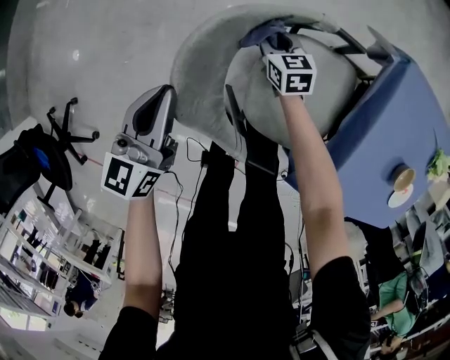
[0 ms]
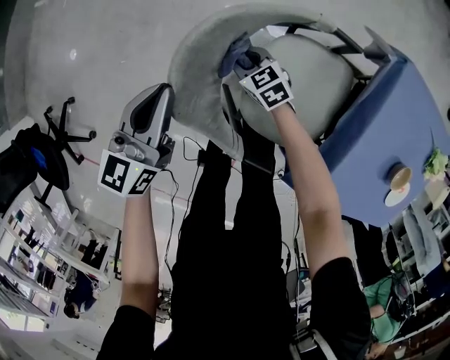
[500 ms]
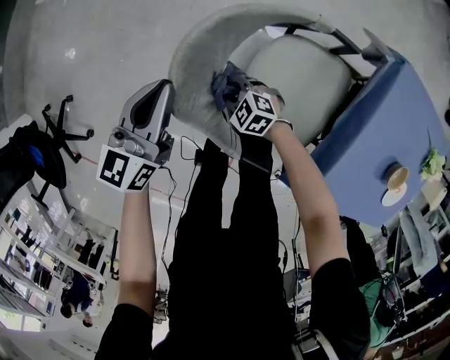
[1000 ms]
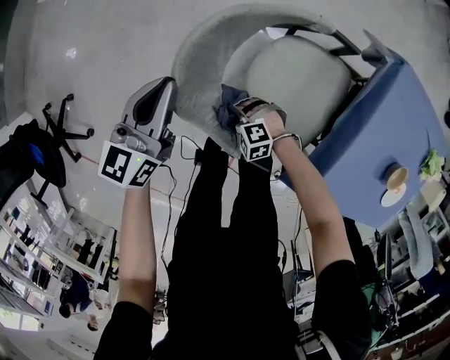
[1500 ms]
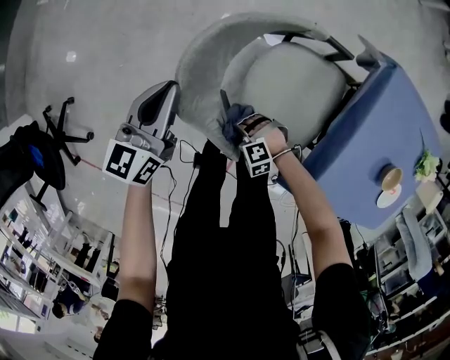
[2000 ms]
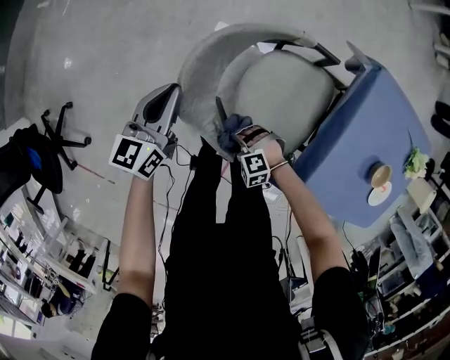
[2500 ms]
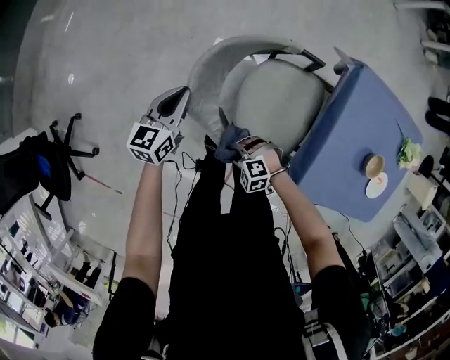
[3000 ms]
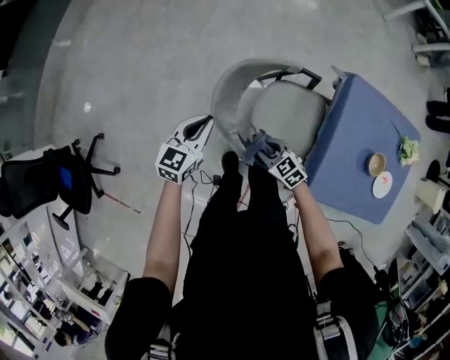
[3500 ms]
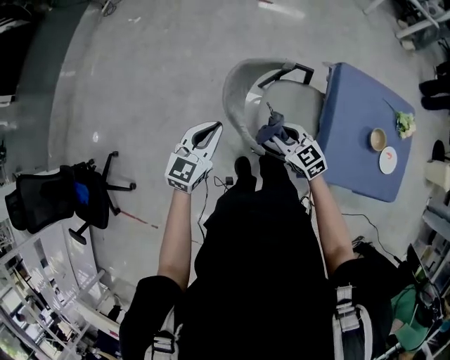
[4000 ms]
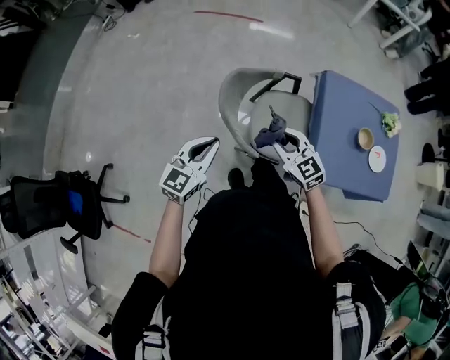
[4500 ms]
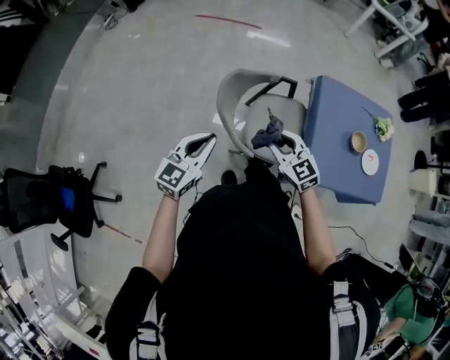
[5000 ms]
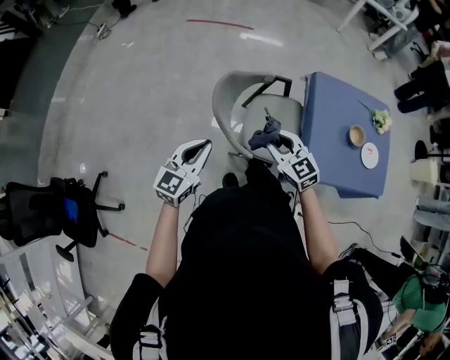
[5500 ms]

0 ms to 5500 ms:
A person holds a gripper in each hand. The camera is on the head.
0 ms to 2000 ms: The right gripper ends up roughly 35 cm from where it was, and rolls counterclockwise, seen from behind, by roughly 80 degrees.
2000 ms to 3500 ms: The right gripper moves upward, roughly 20 cm, and twists about 50 degrees clockwise, seen from behind; the left gripper moves upward, some 10 cm, and turns by roughly 20 degrees.
3500 ms to 5500 ms: The right gripper travels upward by some 25 cm, and changes its angle by some 30 degrees, while the left gripper goes approximately 25 cm backward and upward.

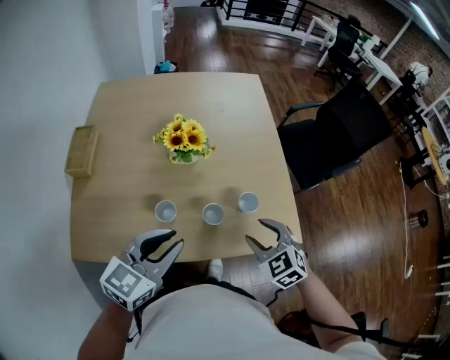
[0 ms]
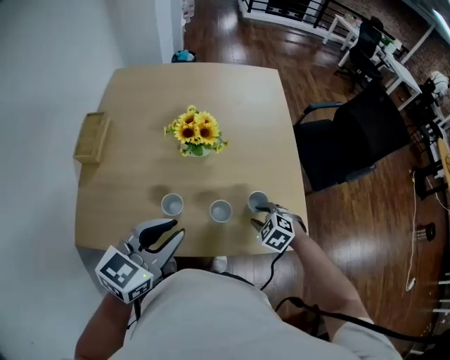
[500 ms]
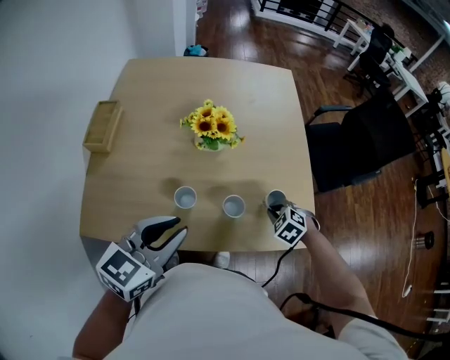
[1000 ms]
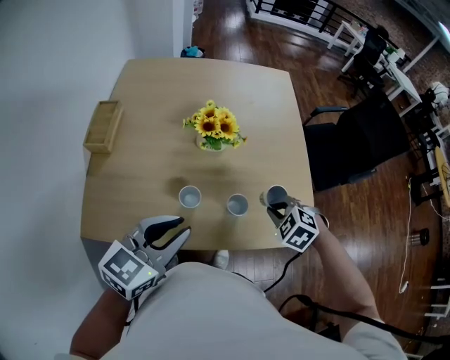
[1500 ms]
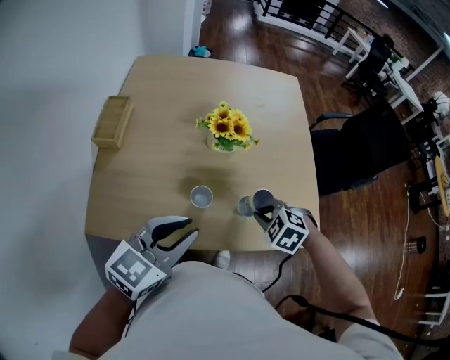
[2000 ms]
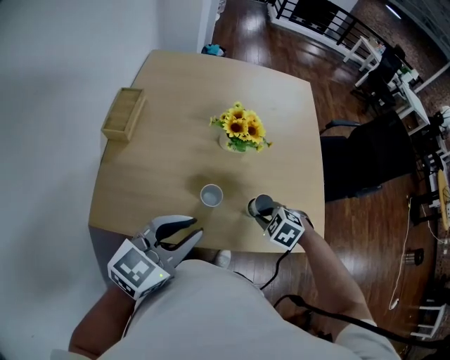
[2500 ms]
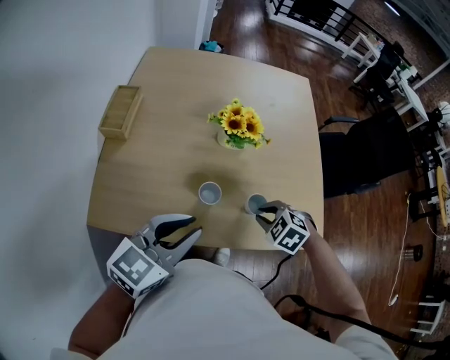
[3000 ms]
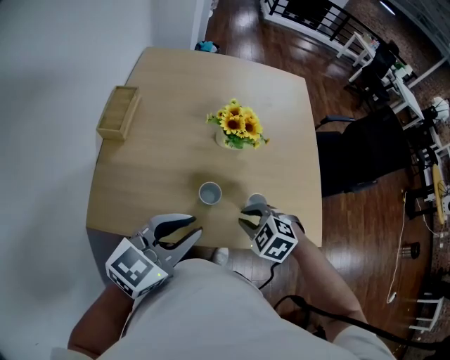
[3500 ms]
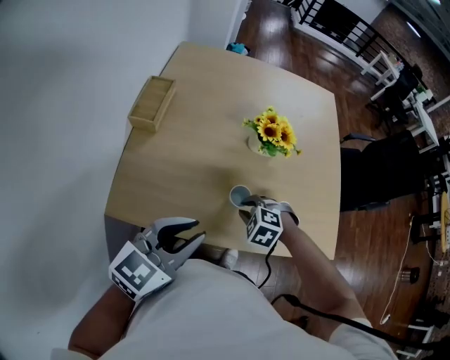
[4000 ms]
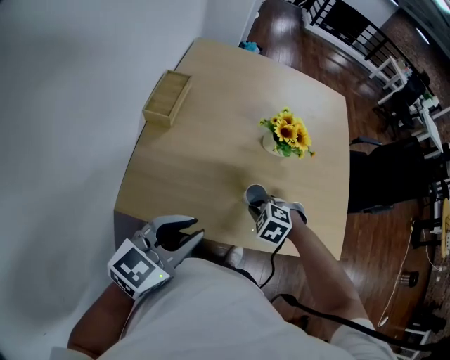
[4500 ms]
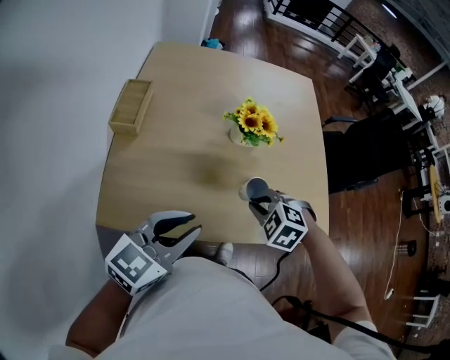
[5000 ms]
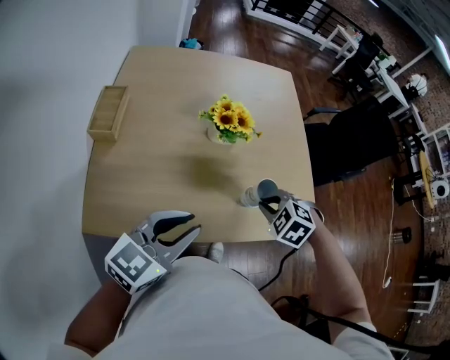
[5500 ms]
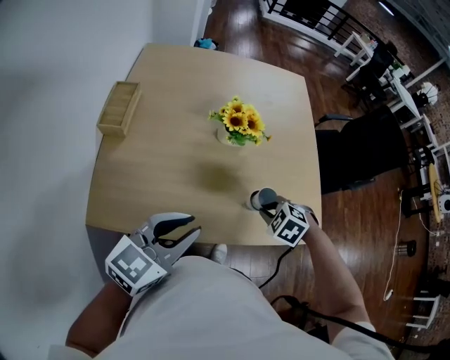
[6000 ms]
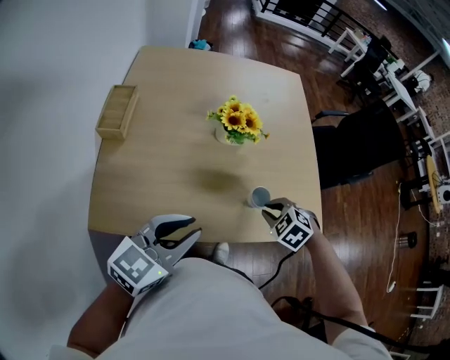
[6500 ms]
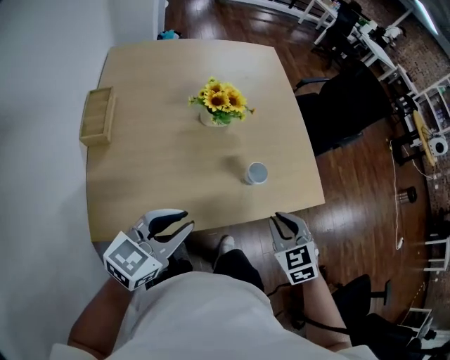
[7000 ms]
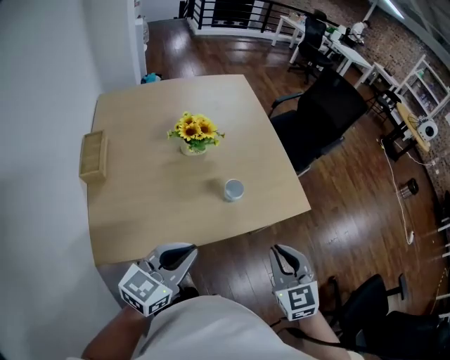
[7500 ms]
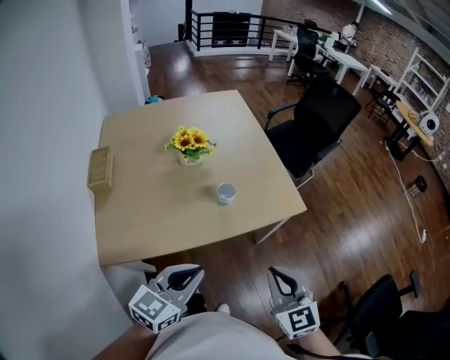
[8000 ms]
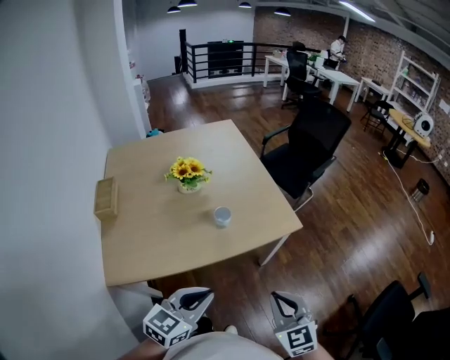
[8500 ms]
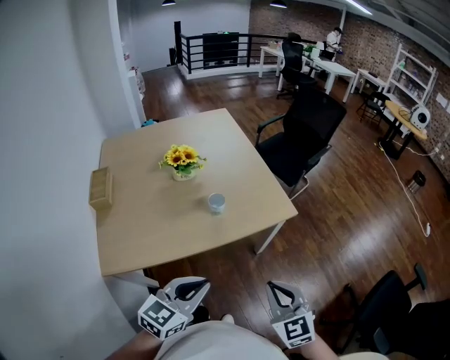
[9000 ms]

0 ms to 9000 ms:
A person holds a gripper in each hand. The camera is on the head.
0 ms to 2000 ms: Both grippers move to the left, approximately 10 cm. The right gripper travels downward and back again, roughly 15 cm each way, rotates roughly 30 degrees, and closes its fingers.
2000 ms to 4500 ms: The two grippers go about 15 cm to the left.
4500 ms to 7000 ms: The right gripper moves up and down over roughly 10 cm, changing direction 2 times, and turns by some 60 degrees. The left gripper ends up some 10 cm from where it was, and turns by roughly 20 degrees.
7000 ms to 9000 ms: The right gripper moves backward and to the right, roughly 25 cm, and rotates some 20 degrees. The left gripper travels to the right and backward by roughly 25 cm.

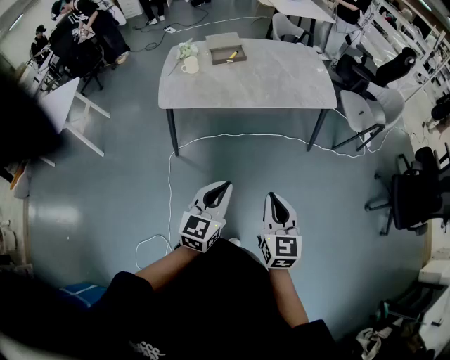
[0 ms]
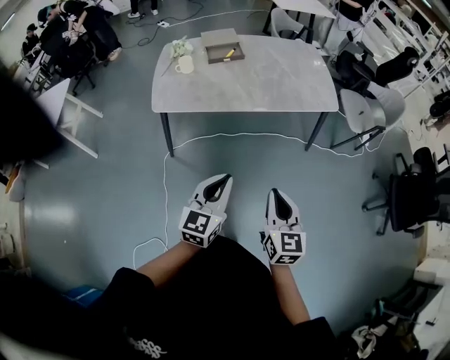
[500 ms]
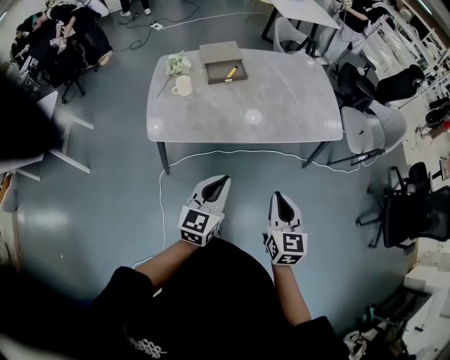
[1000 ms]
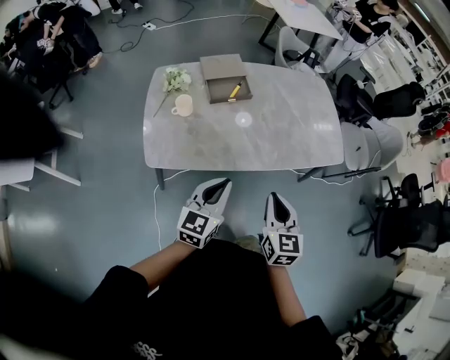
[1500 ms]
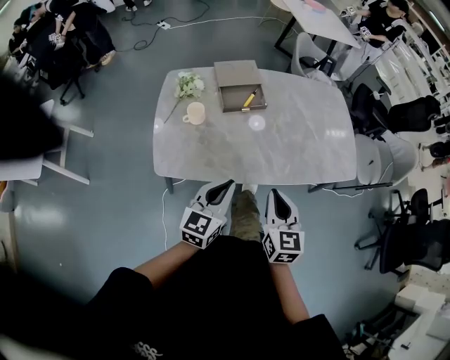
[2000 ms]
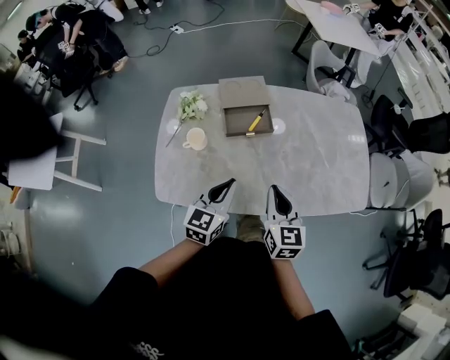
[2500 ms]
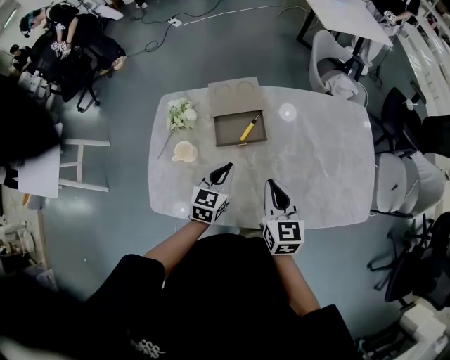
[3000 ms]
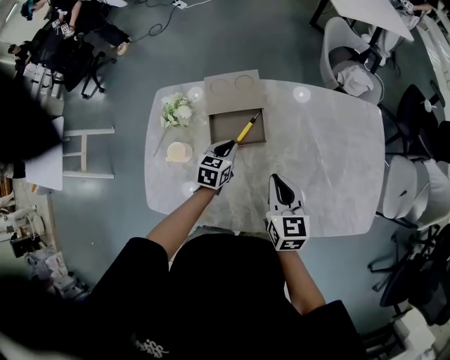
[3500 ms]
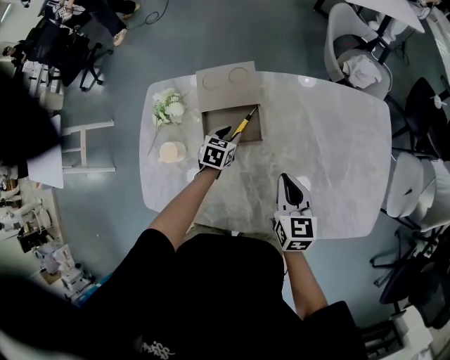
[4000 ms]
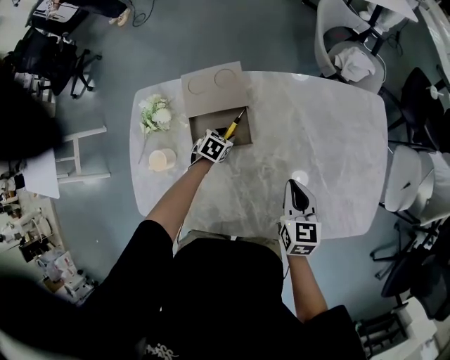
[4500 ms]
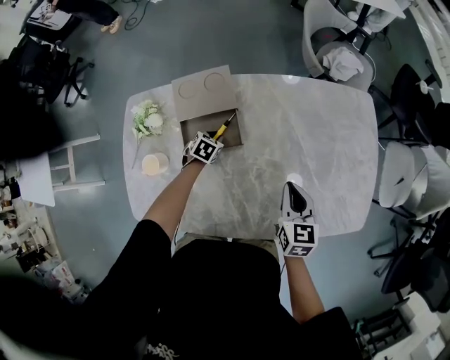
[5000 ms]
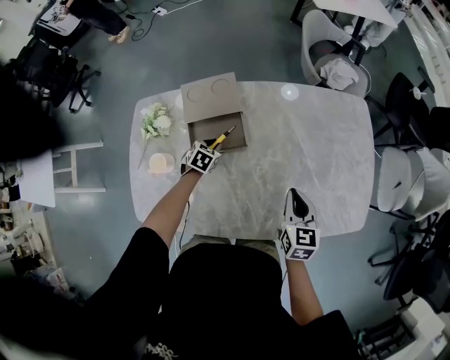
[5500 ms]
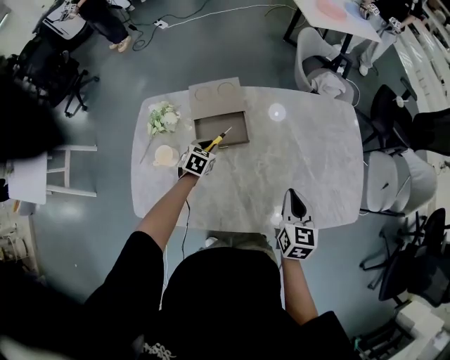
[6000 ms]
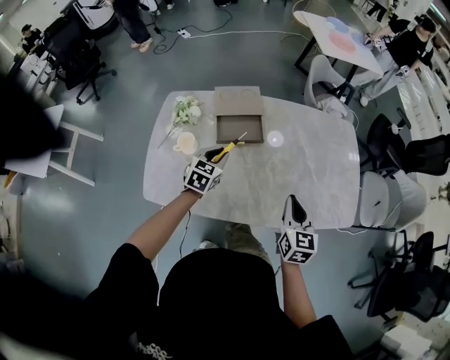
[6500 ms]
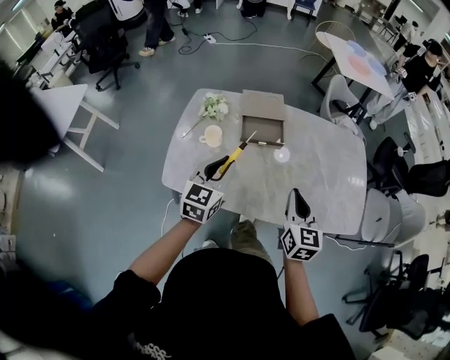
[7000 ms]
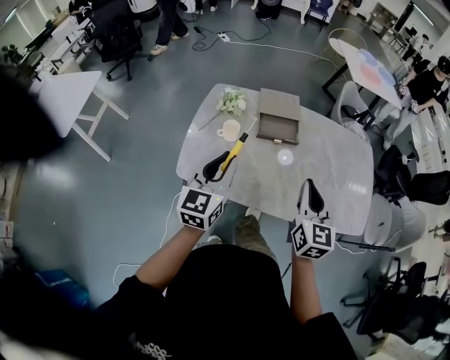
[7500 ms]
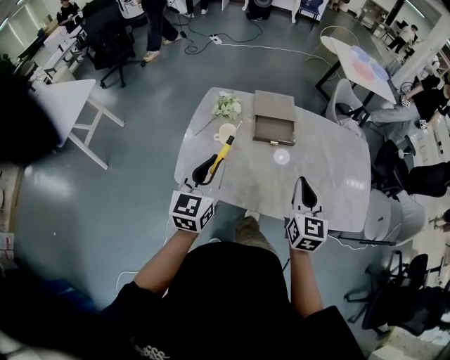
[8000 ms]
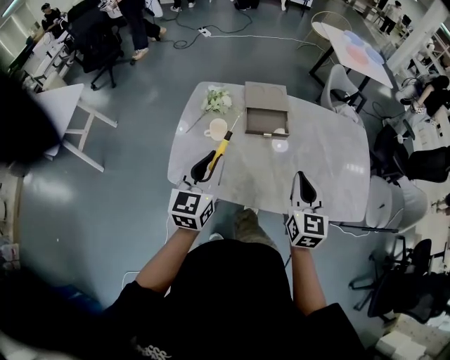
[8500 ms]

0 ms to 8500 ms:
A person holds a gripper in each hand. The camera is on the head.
0 ms to 2000 ms: The two grippers travel together, forward and to the left, roughly 50 cm.
2000 ms to 4000 ms: Both grippers are carried forward, roughly 50 cm. The left gripper travels downward by roughly 25 cm, tilts its fingers about 40 degrees downward, and opens up.
4000 ms to 6500 ms: The grippers both shift backward and upward by about 25 cm. The left gripper turns by approximately 20 degrees.
6500 ms to 8500 ms: The left gripper is displaced upward, backward and to the left by some 30 cm, and rotates about 30 degrees. The right gripper goes some 15 cm to the left and upward.

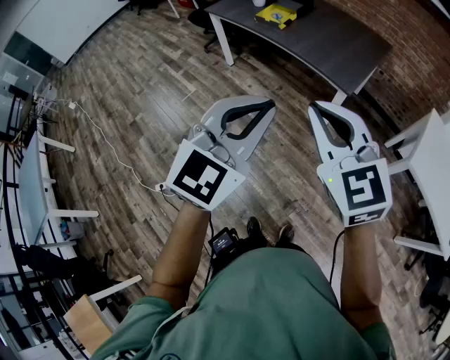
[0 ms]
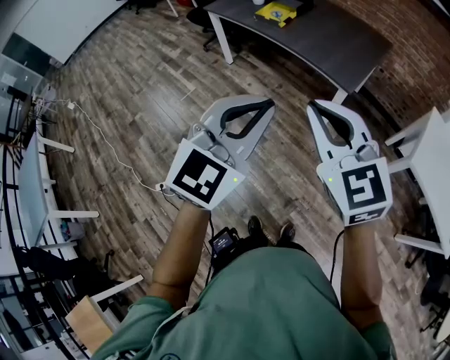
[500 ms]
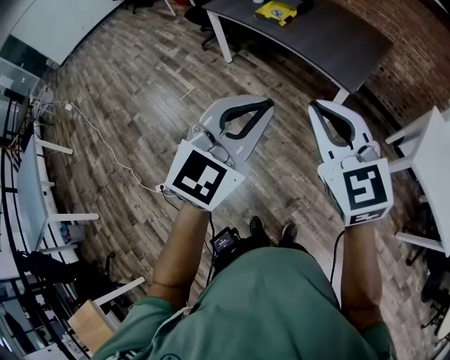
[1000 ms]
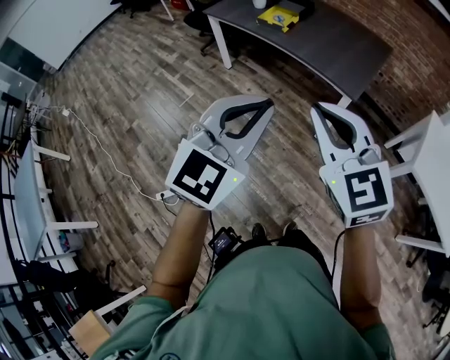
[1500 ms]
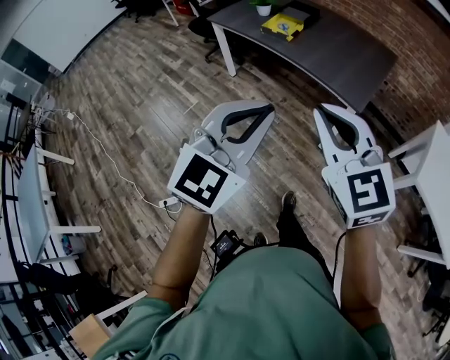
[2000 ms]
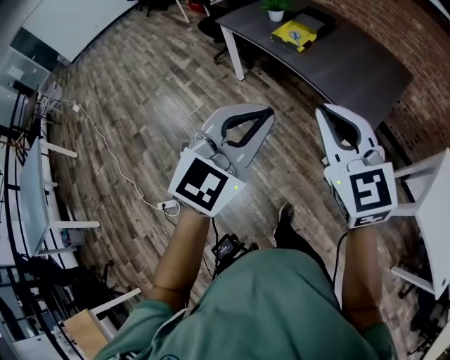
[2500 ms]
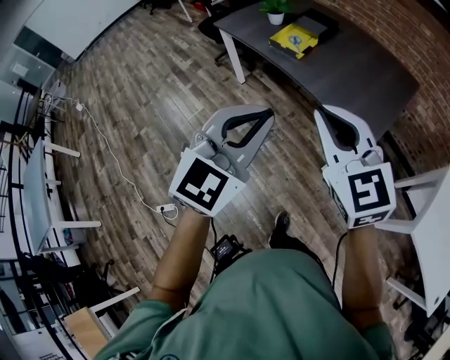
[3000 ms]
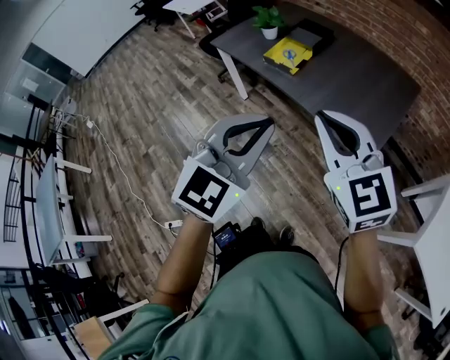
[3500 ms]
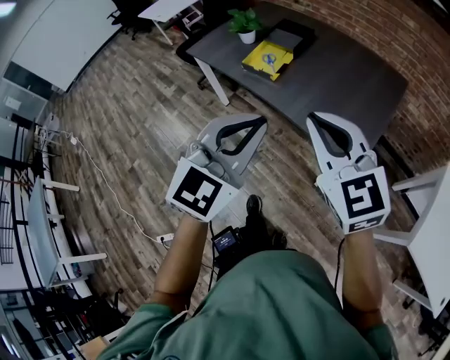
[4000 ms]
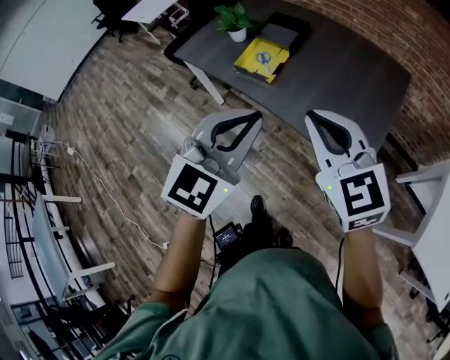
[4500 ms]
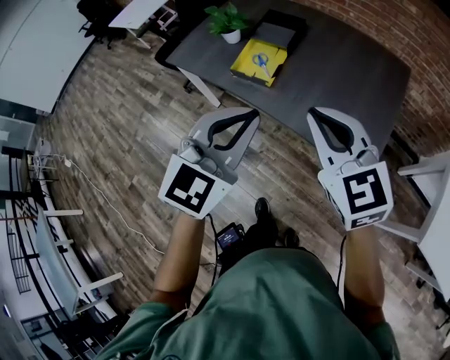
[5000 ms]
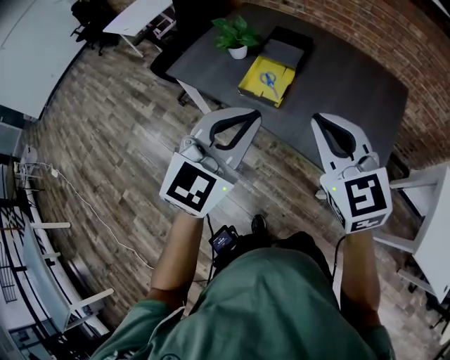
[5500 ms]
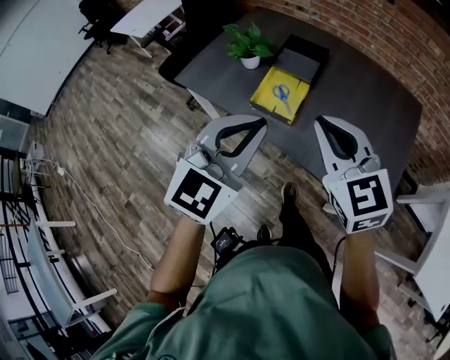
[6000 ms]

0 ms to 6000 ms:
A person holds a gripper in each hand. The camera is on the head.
0 ms to 2000 ms: The two grippers go approximately 10 cm forward and to the left.
2000 ms to 4000 ms: The two grippers go approximately 30 cm forward.
4000 ms to 6000 ms: The two grippers go approximately 30 cm forward and to the left.
